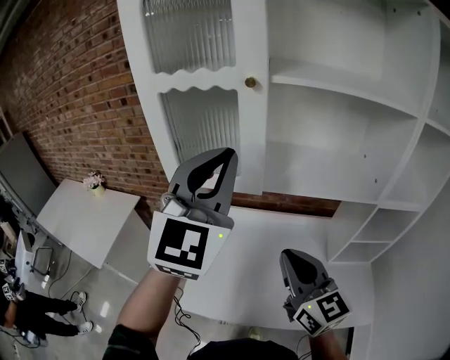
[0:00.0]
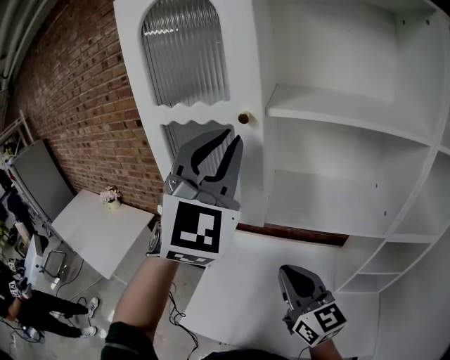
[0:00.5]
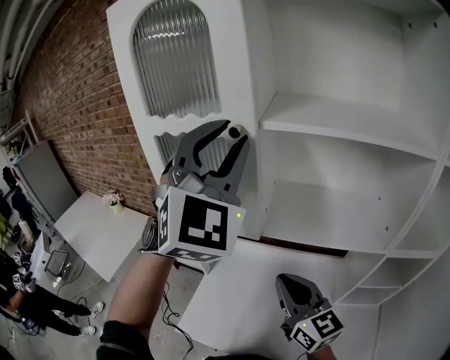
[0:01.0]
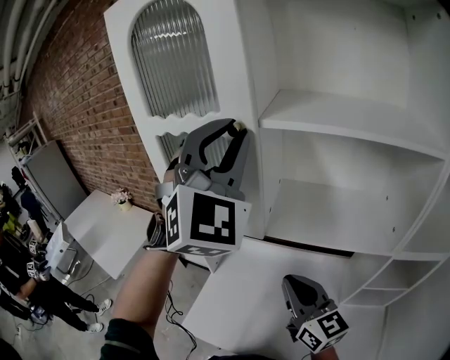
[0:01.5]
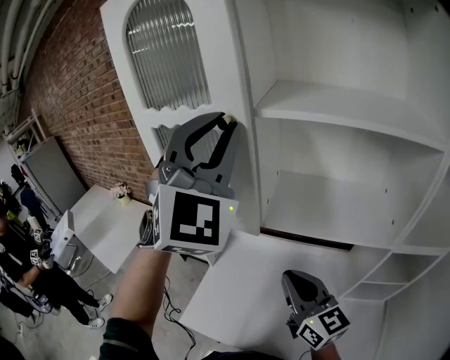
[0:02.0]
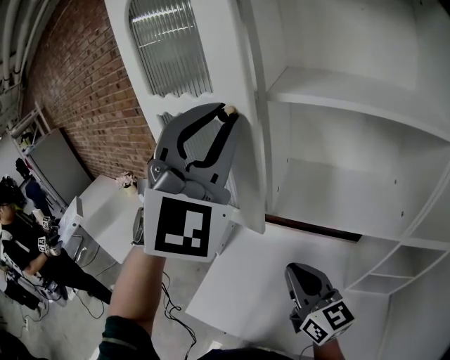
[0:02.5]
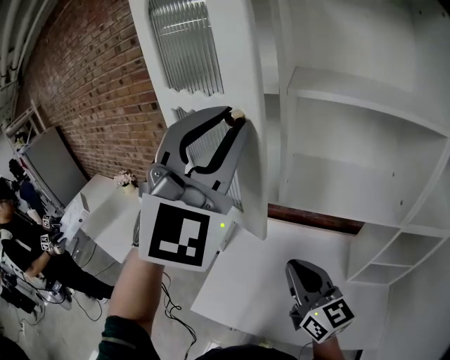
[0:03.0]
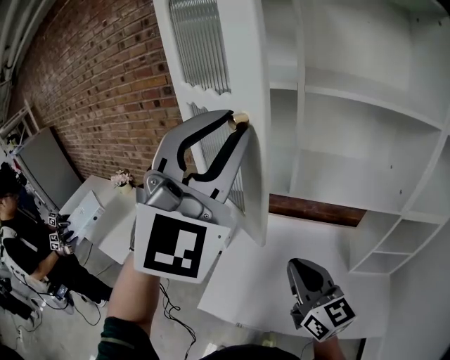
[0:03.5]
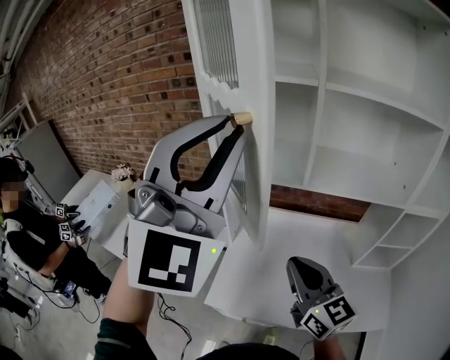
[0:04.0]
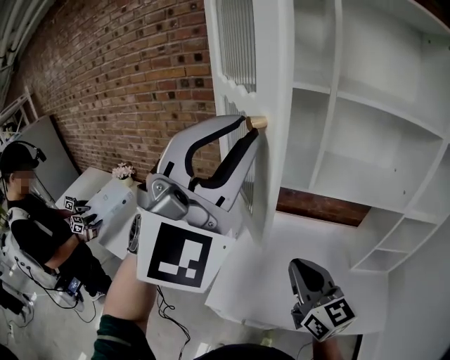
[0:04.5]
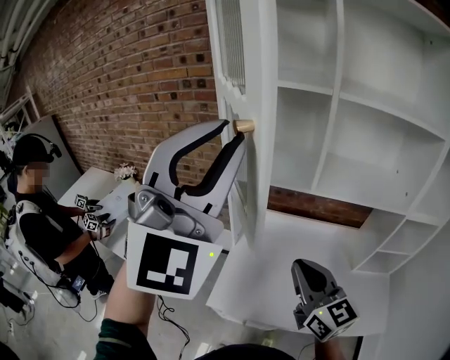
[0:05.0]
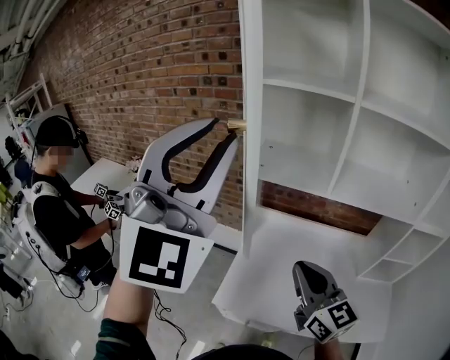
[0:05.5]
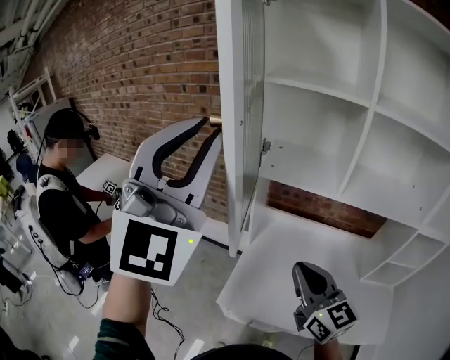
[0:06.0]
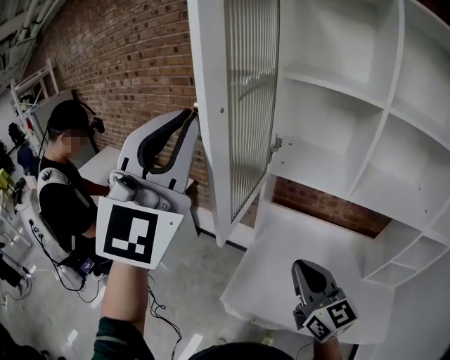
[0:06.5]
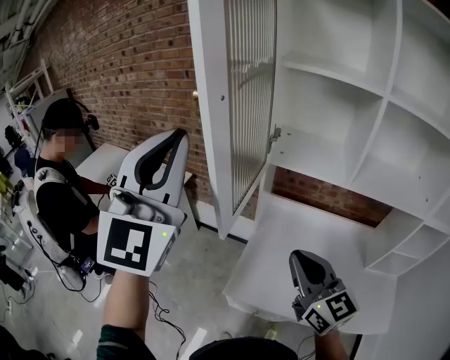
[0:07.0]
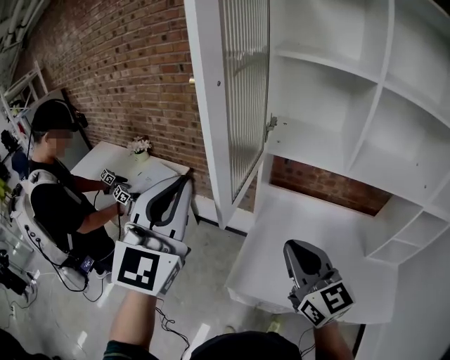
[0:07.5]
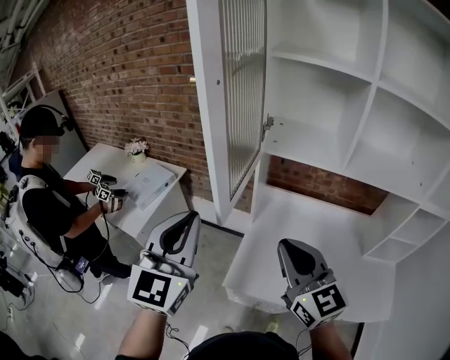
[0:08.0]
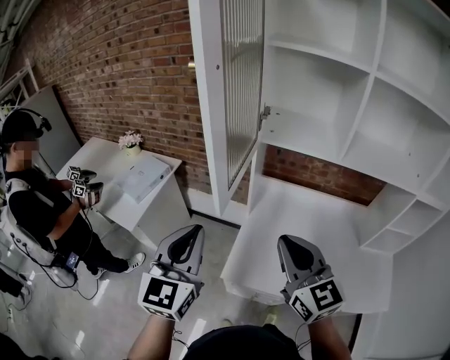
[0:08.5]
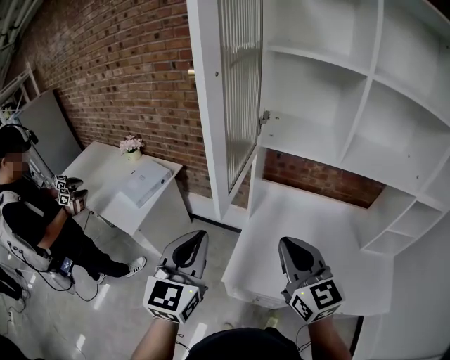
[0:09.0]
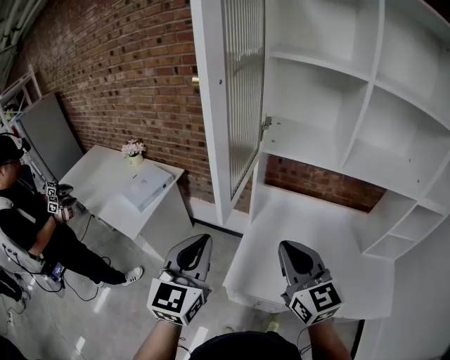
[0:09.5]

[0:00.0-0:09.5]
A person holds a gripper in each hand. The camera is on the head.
0:00.0 to 0:02.0: The left gripper moves upward and forward, some 10 cm, and changes its angle by about 30 degrees, while the right gripper shifts about 5 cm forward.
0:02.0 to 0:04.0: Both grippers travel together to the left and backward, approximately 20 cm.
0:04.0 to 0:05.5: The right gripper is displaced to the left by approximately 5 cm, while the left gripper moves to the left, about 10 cm.
0:05.5 to 0:07.5: The left gripper heads downward and to the left, covering about 20 cm, and swivels some 30 degrees, while the right gripper travels to the left by roughly 10 cm.
0:07.5 to 0:09.5: The left gripper moves downward, some 15 cm, and rotates roughly 20 degrees.

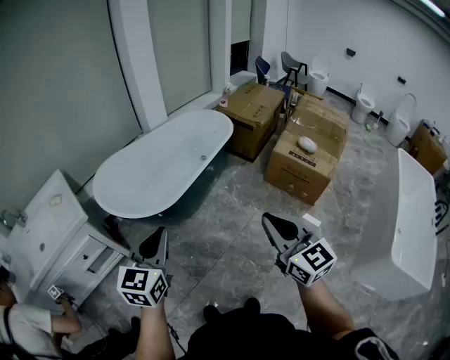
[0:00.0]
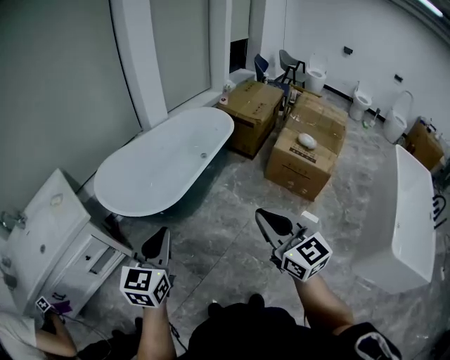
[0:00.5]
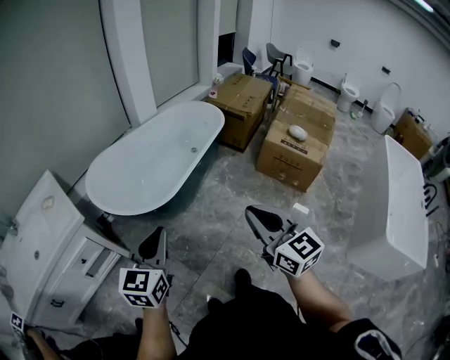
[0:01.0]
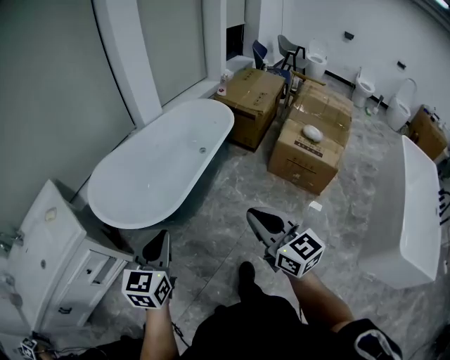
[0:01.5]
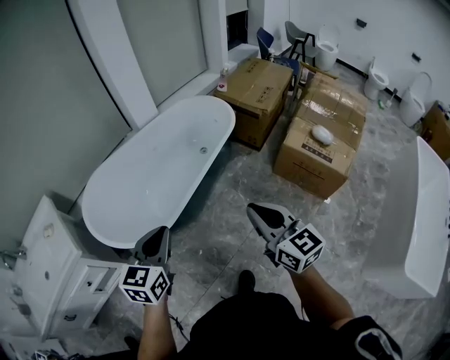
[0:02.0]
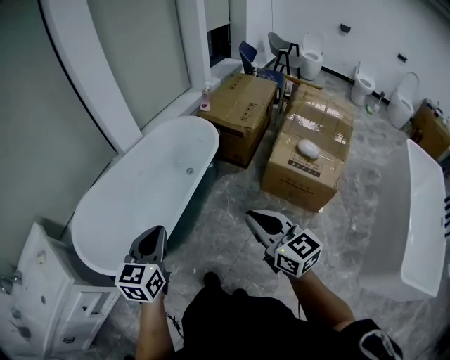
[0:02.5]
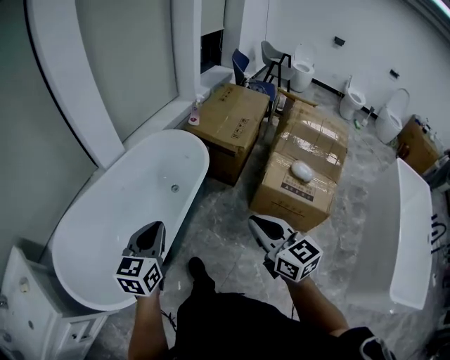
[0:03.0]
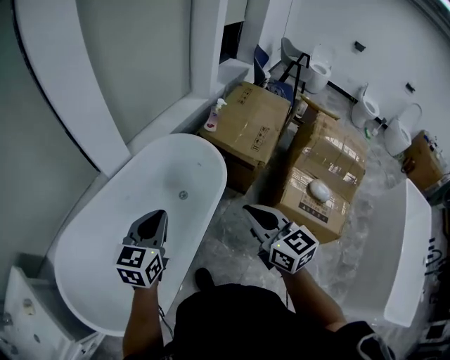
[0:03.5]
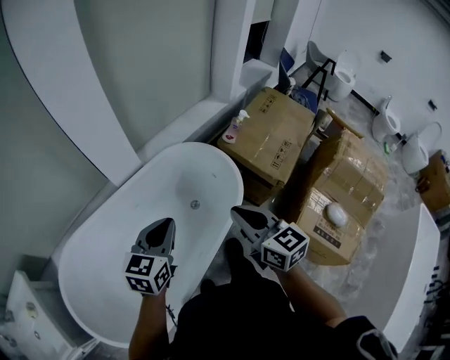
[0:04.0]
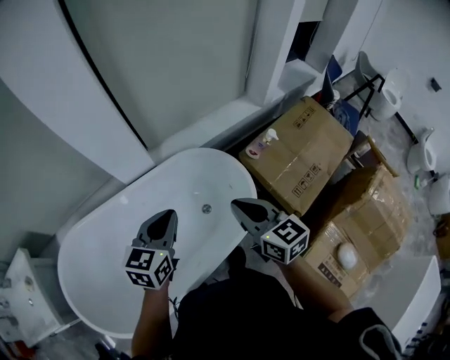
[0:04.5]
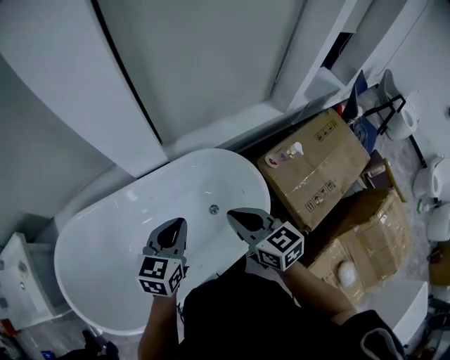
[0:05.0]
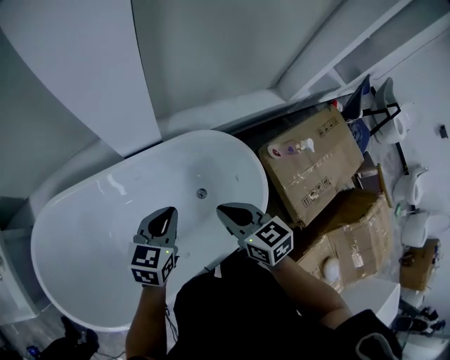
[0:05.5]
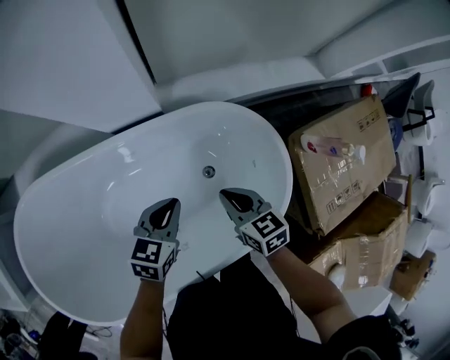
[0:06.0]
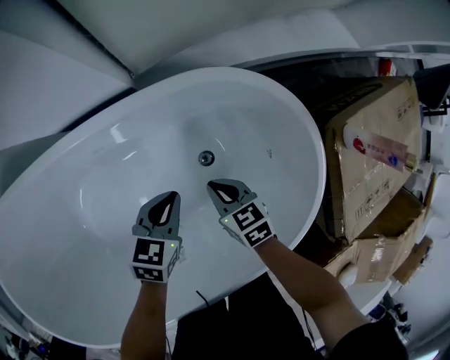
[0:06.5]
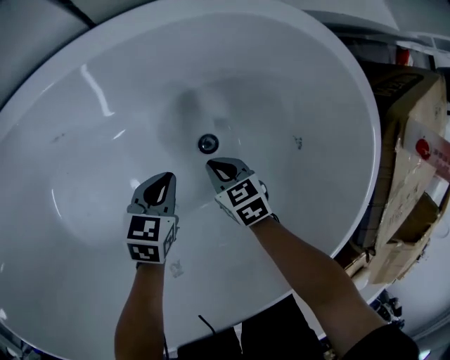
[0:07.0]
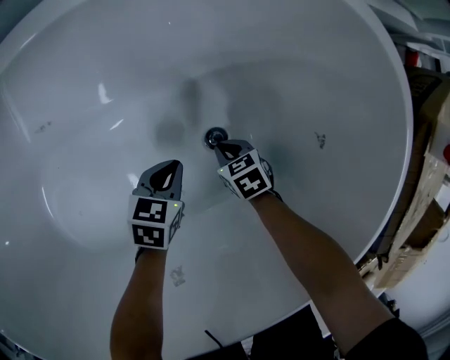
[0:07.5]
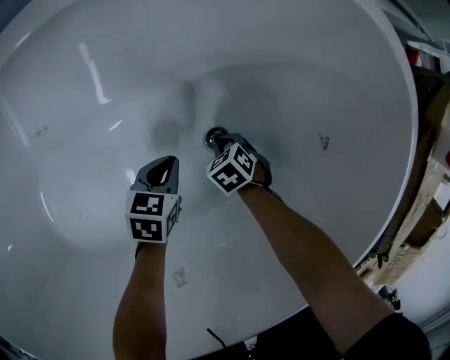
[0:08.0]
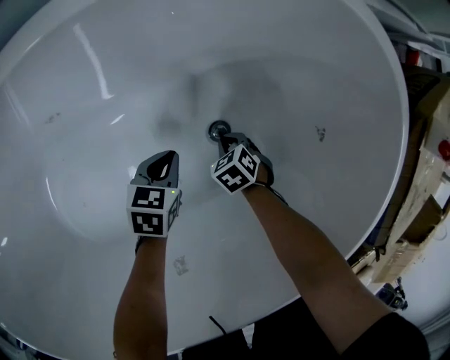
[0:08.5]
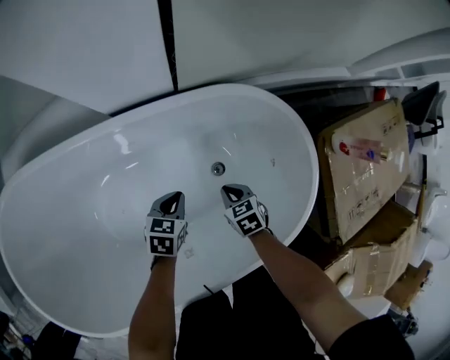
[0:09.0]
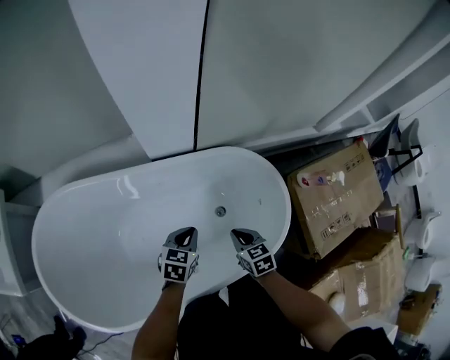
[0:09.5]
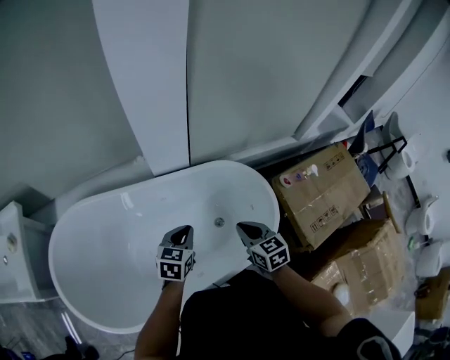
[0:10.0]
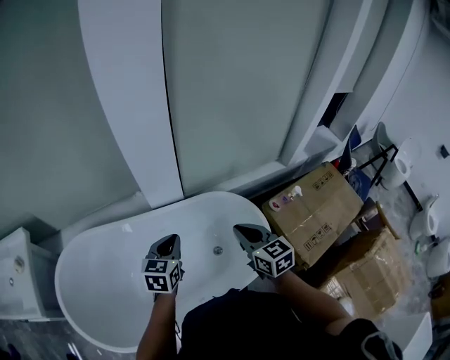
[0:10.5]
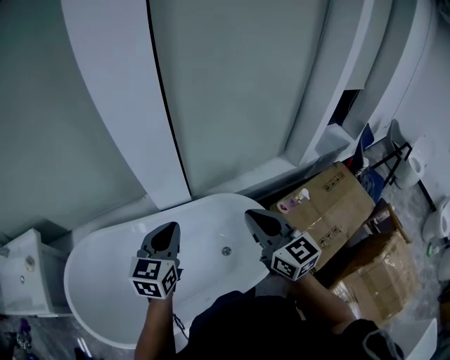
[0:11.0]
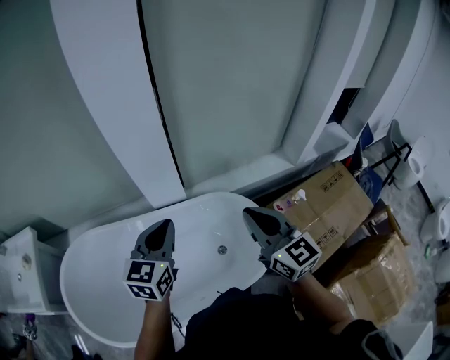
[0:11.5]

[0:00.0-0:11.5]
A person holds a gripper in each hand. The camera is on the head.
0:00.0 to 0:02.0: Both grippers travel together forward, some 25 cm.
0:02.0 to 0:04.0: Both grippers are carried forward, about 60 cm.
0:04.0 to 0:06.0: Both grippers travel together downward and forward, roughly 40 cm. The left gripper swivels about 30 degrees, while the right gripper turns by roughly 40 degrees.
0:06.0 to 0:07.5: Both grippers move downward, some 50 cm. The right gripper turns by about 30 degrees.
0:07.5 to 0:09.5: The two grippers go about 50 cm upward. The right gripper rotates about 20 degrees.
0:09.5 to 0:11.5: Both grippers move upward, roughly 40 cm. The right gripper tips its fingers upward by roughly 40 degrees. Meanwhile the left gripper turns by approximately 30 degrees.

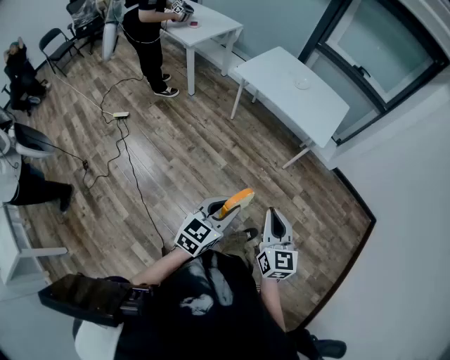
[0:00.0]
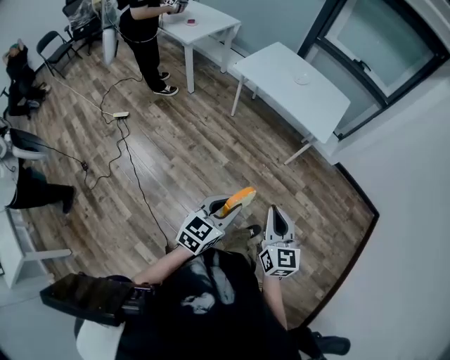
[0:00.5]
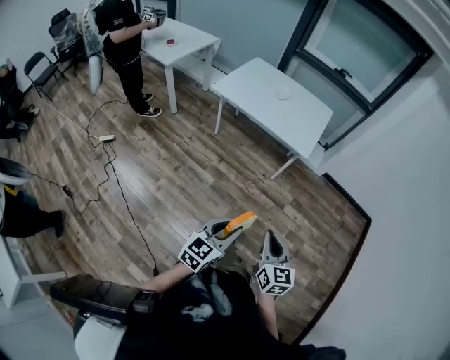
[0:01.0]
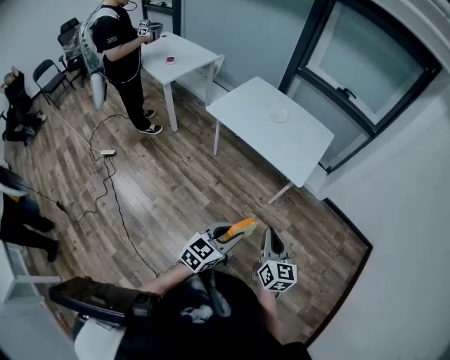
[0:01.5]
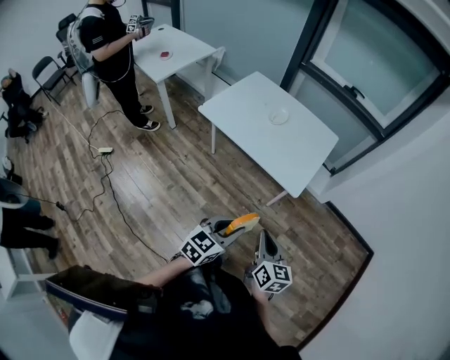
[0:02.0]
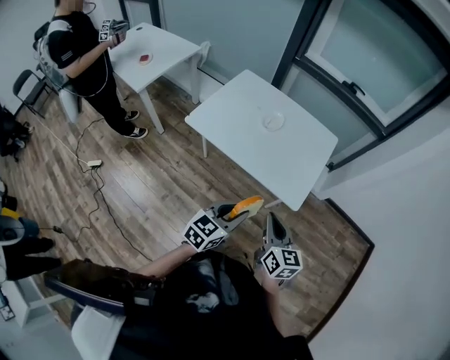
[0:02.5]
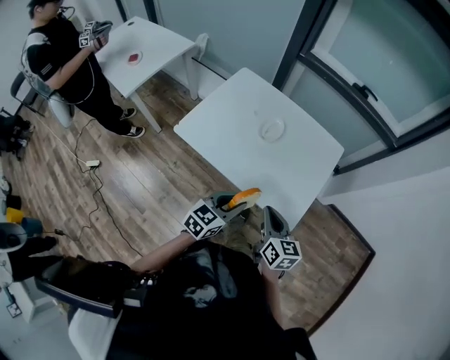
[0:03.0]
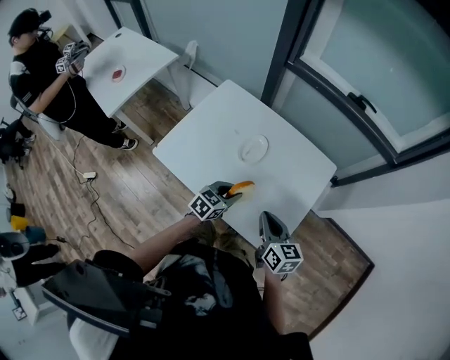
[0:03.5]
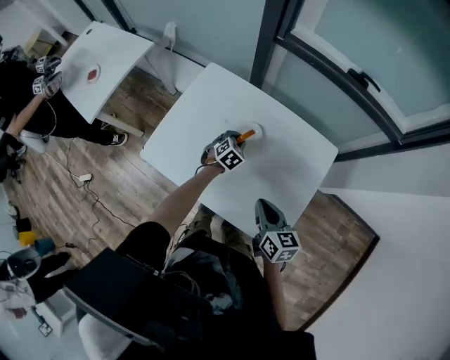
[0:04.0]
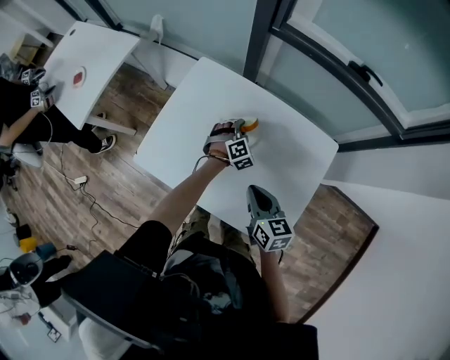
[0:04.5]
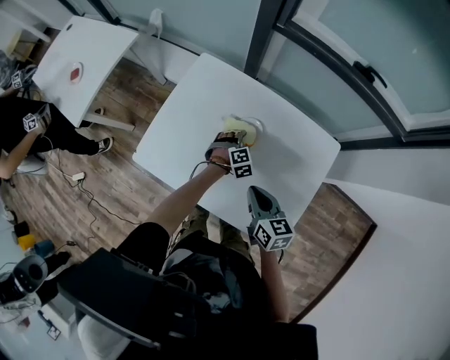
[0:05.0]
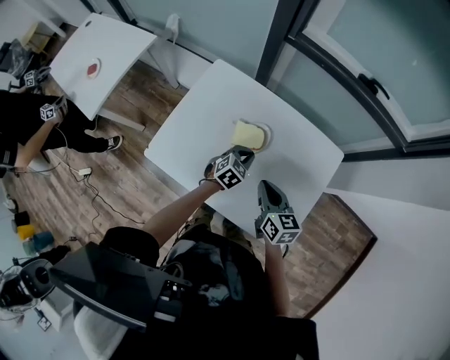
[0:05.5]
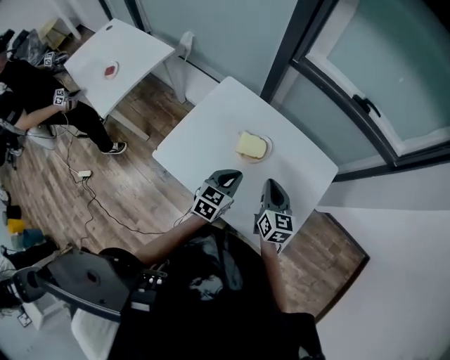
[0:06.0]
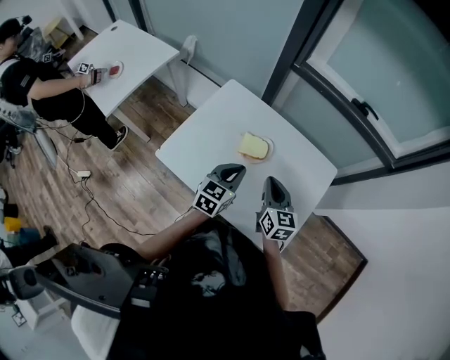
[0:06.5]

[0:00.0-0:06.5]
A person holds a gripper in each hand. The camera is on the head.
0:00.0 to 0:02.0: The left gripper moves forward and to the right, some 35 cm; the right gripper is displaced forward by roughly 30 cm, and changes its angle by roughly 20 degrees.
0:02.0 to 0:04.5: The two grippers travel together, some 70 cm. The left gripper swivels roughly 60 degrees.
0:04.5 to 0:06.5: The left gripper travels upward and backward by some 25 cm, twists some 50 degrees counterclockwise, seen from behind, and opens, then closes again. Meanwhile the right gripper shifts approximately 5 cm upward.
